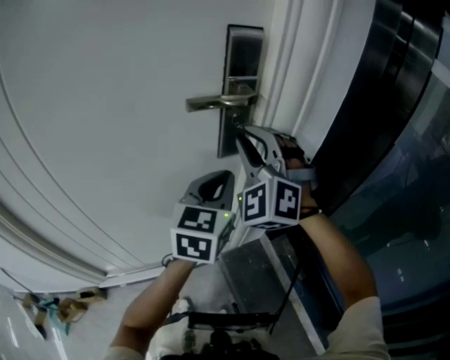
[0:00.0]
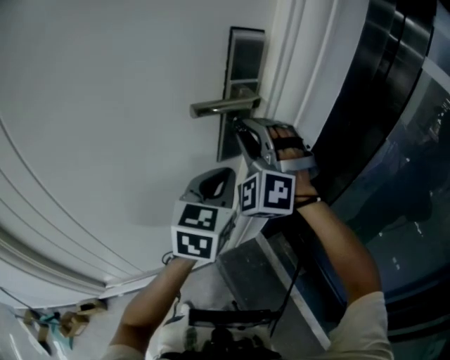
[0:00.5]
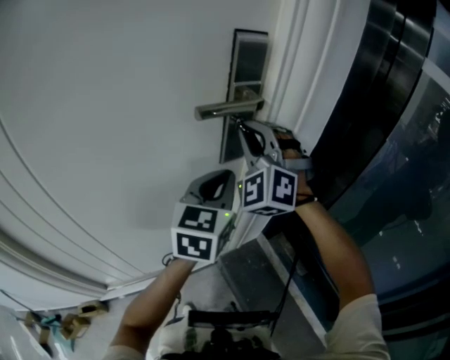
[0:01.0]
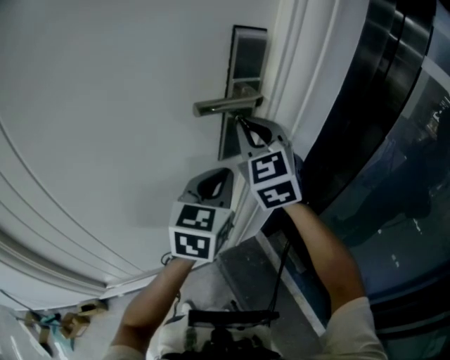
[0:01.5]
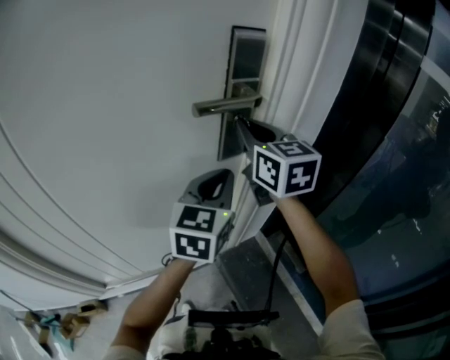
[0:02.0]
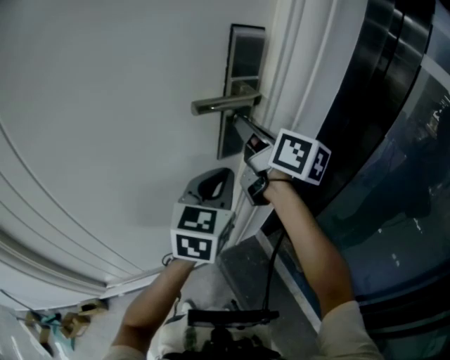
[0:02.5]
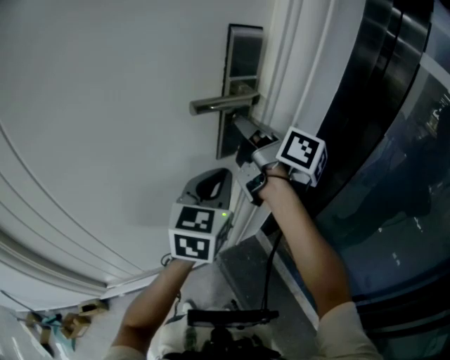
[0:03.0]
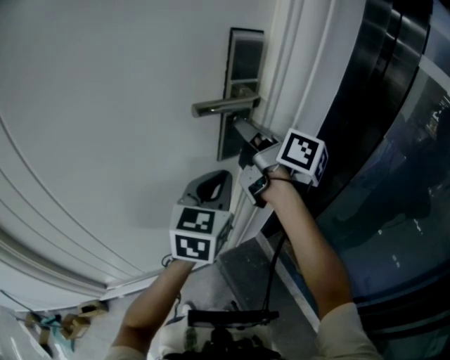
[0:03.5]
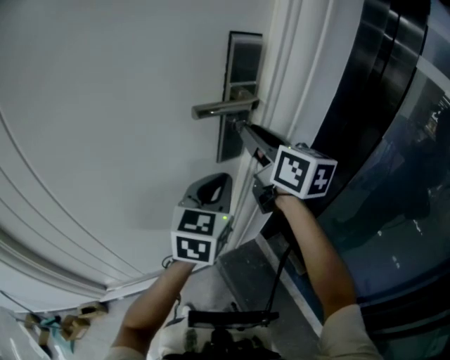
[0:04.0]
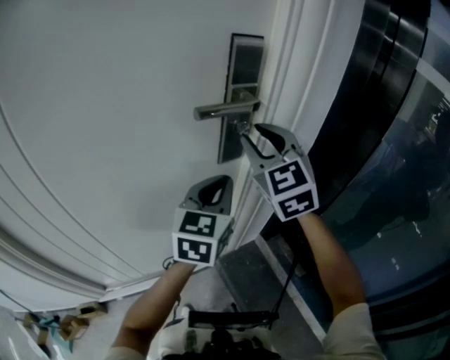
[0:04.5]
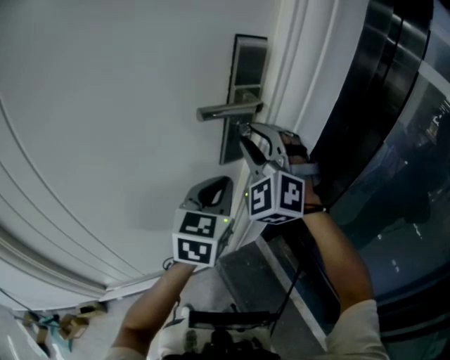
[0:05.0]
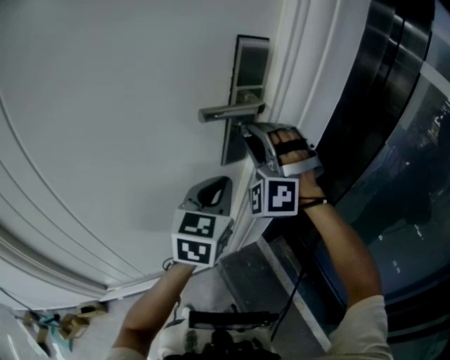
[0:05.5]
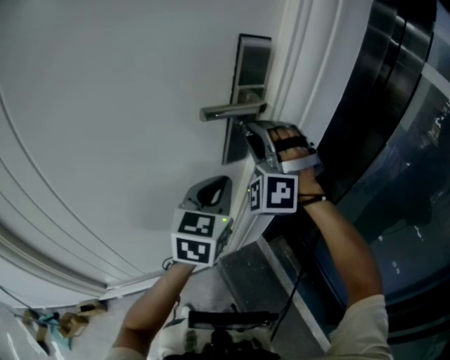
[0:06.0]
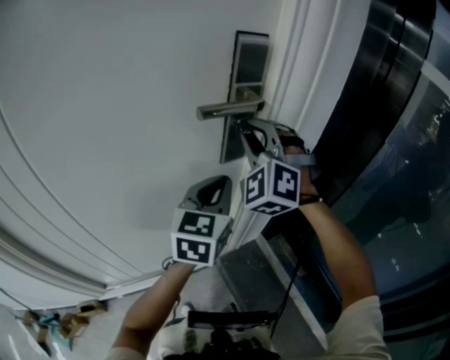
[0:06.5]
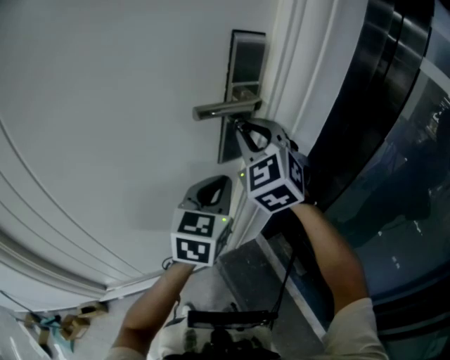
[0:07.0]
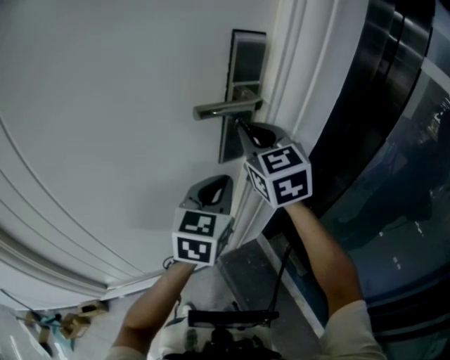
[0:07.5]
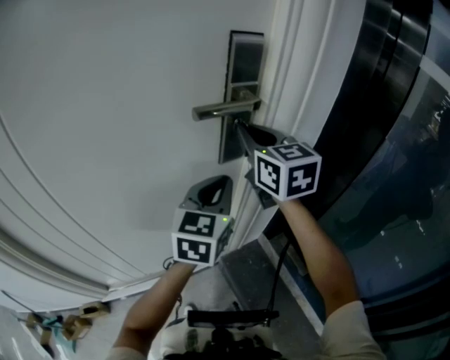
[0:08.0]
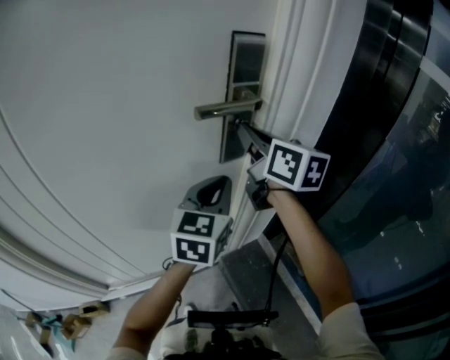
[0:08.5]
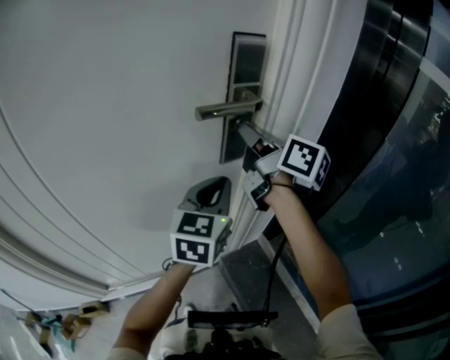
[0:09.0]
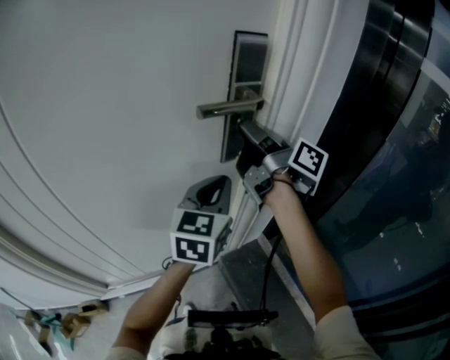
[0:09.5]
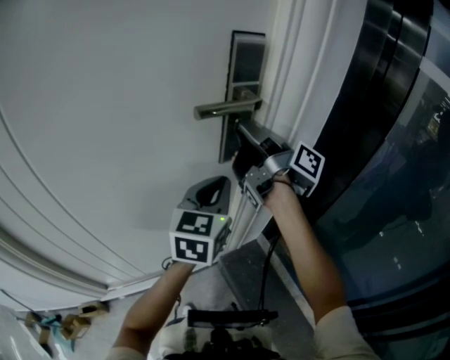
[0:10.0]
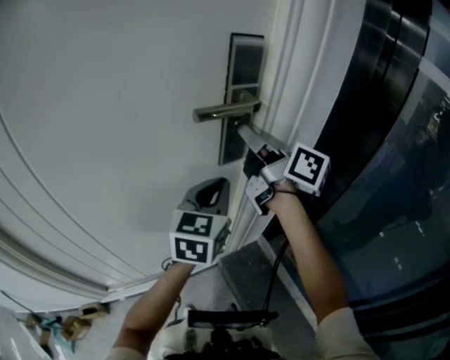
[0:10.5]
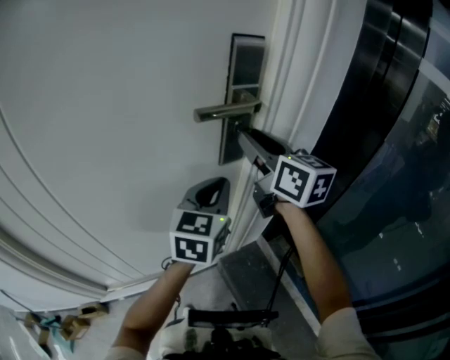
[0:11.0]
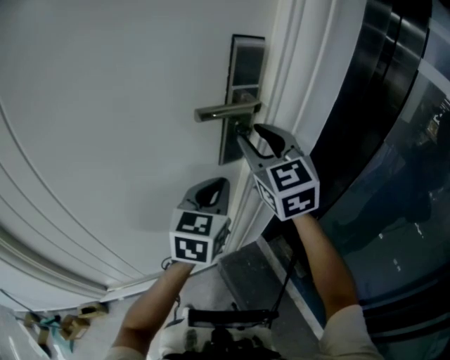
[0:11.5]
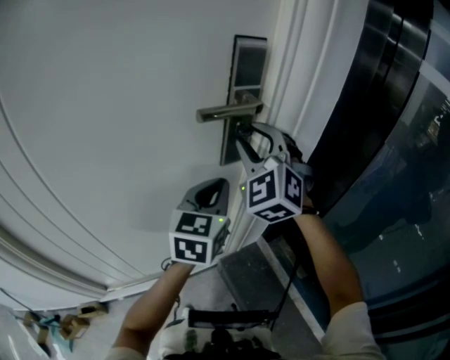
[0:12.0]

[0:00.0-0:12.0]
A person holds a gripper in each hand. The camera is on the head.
0:00.0 to 0:02.0: The right gripper twists approximately 70 degrees clockwise, seen from behind.
0:02.0 to 0:04.0: The right gripper opens its fingers.
0:04.0 to 0:06.0: The right gripper rolls counterclockwise, seen from behind, by some 110 degrees.
0:06.0 to 0:08.0: The right gripper twists approximately 90 degrees clockwise, seen from behind.
0:08.0 to 0:10.0: The right gripper rotates around the line of its fingers by roughly 80 degrees, clockwise from behind.
0:10.0 to 0:12.0: The right gripper rotates around the line of its fingers by about 130 degrees, counterclockwise from behind, and opens its fingers.

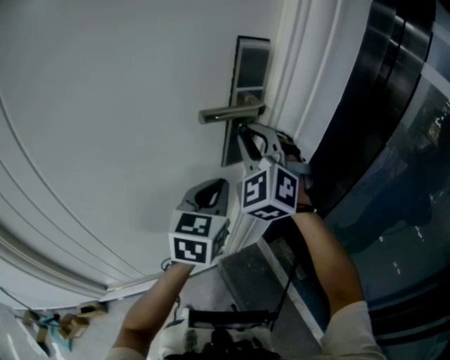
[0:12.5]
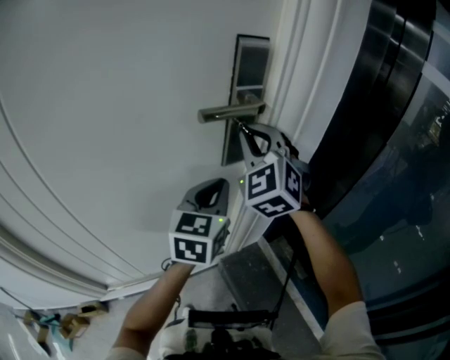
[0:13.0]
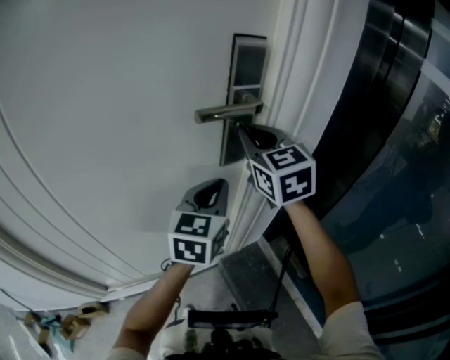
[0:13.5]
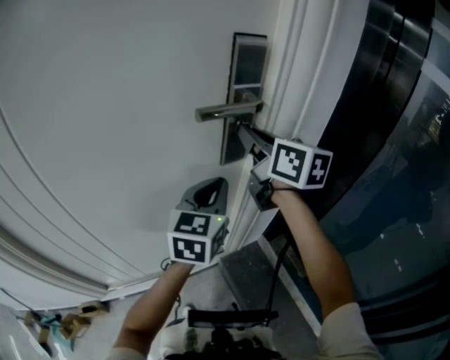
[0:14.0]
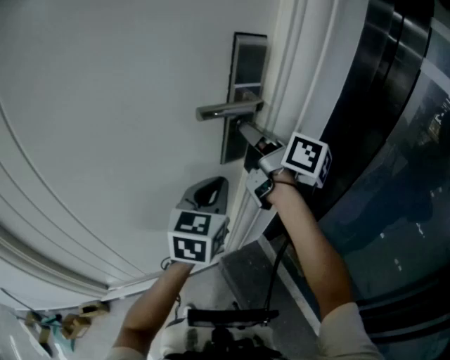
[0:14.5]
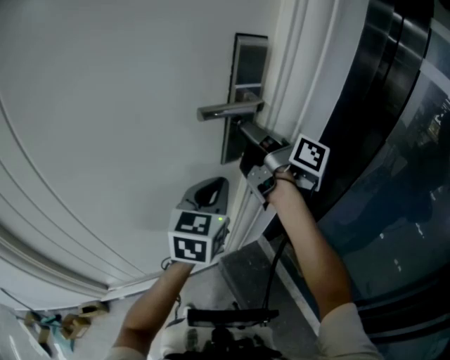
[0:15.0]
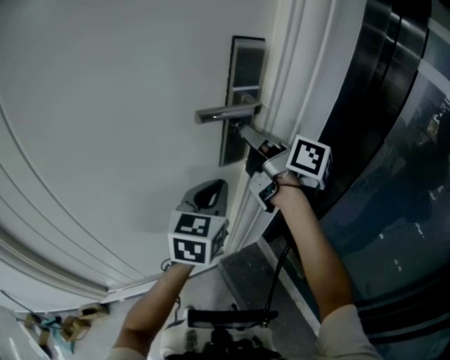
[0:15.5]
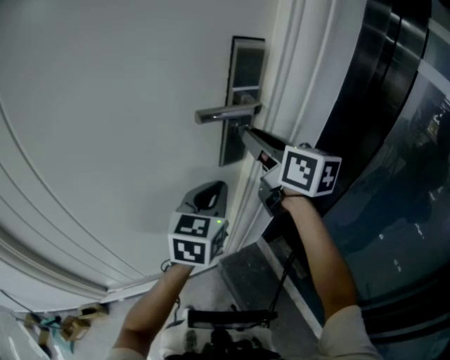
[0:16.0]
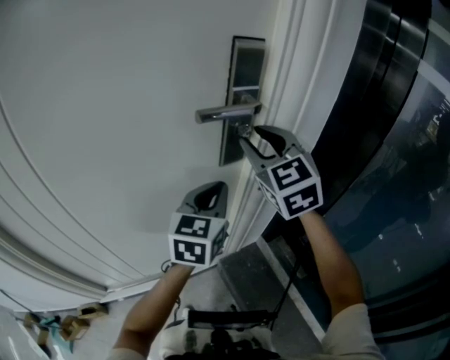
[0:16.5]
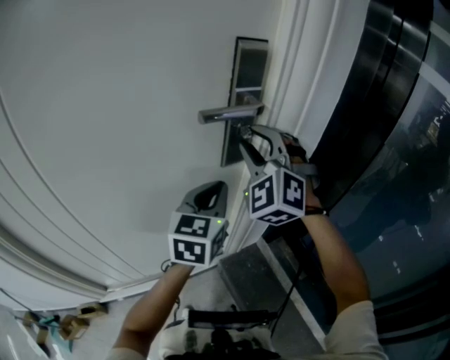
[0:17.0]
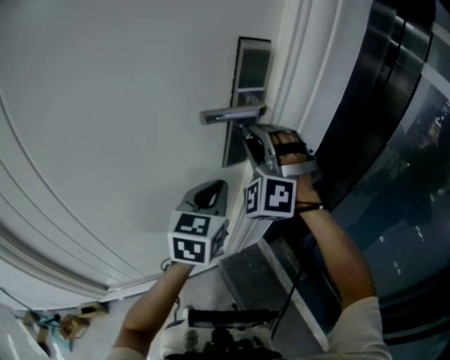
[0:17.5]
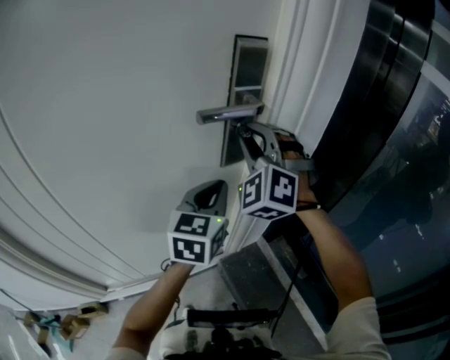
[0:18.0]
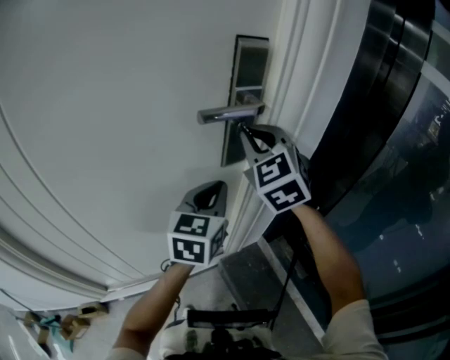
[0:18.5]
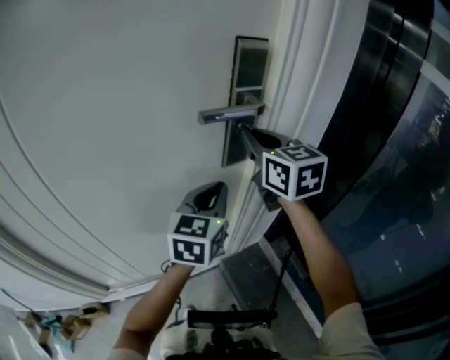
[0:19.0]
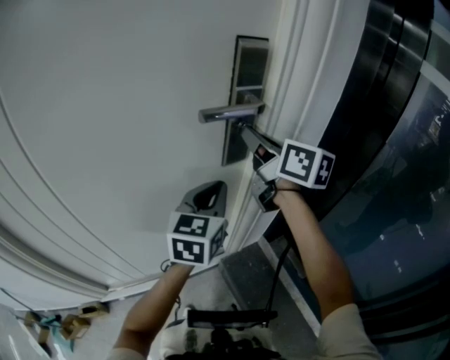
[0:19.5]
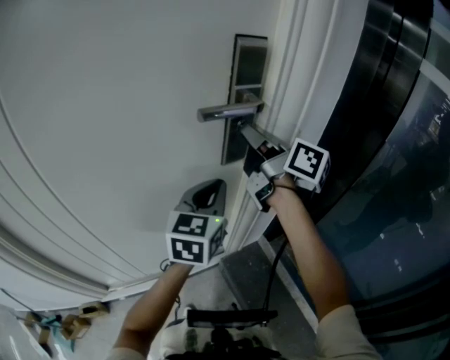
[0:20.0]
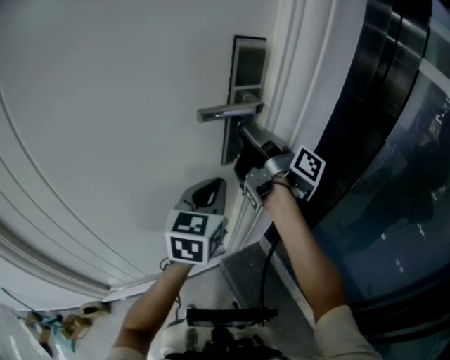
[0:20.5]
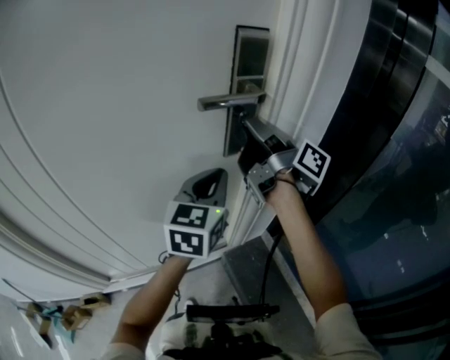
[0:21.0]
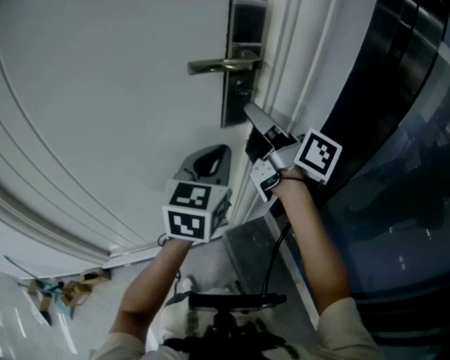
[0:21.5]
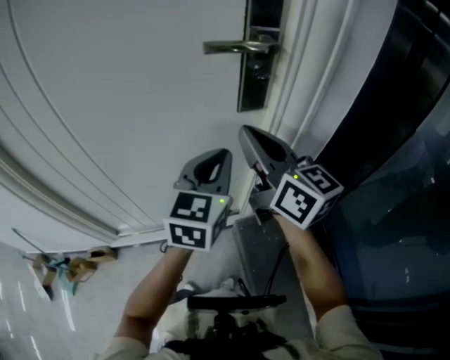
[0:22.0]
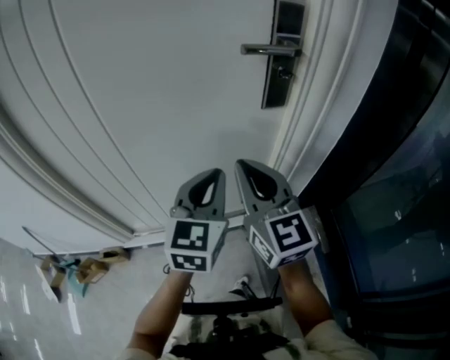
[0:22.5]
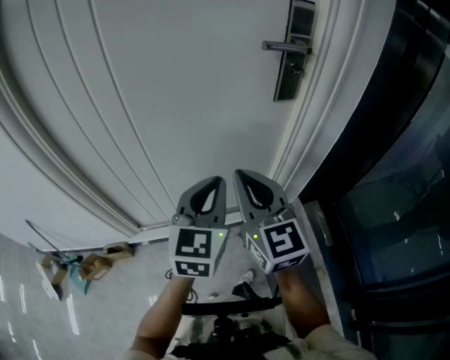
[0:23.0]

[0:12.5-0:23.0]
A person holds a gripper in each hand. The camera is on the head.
0:12.5 to 0:14.5: The right gripper rolls clockwise, seen from behind, by approximately 110 degrees.
0:14.5 to 0:16.5: The right gripper rolls counterclockwise, seen from behind, by some 80 degrees, and opens.
0:16.5 to 0:19.0: The right gripper rotates roughly 30 degrees, and closes its fingers.
0:19.0 to 0:21.0: The right gripper rolls clockwise, seen from behind, by approximately 70 degrees.
0:21.0 to 0:23.0: The right gripper goes roughly 35 cm backward, to the left and downward, and rotates around the line of its fingers by roughly 70 degrees, counterclockwise from behind. The left gripper goes some 25 cm backward and to the left.

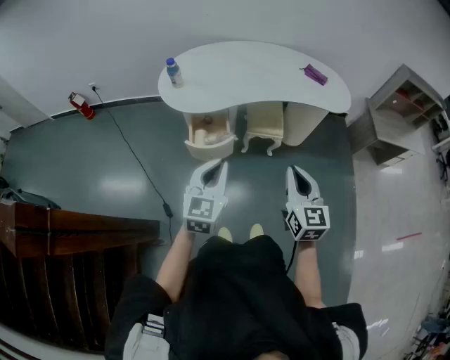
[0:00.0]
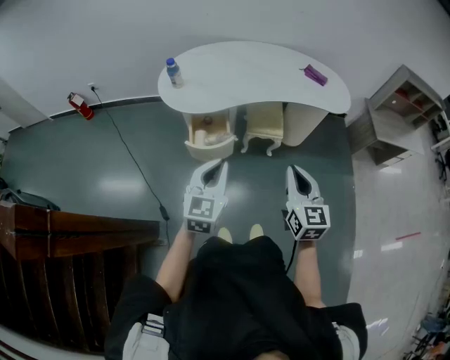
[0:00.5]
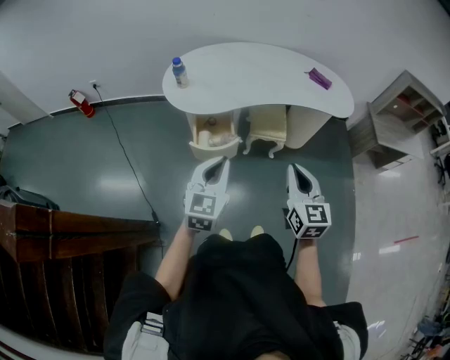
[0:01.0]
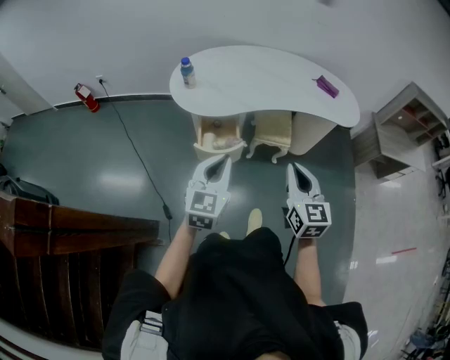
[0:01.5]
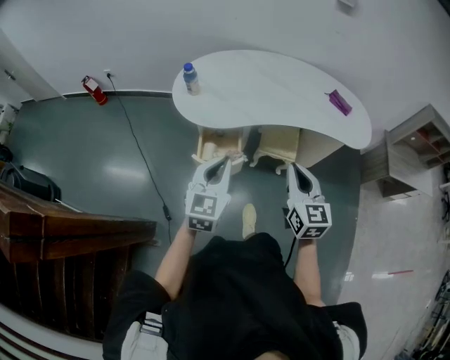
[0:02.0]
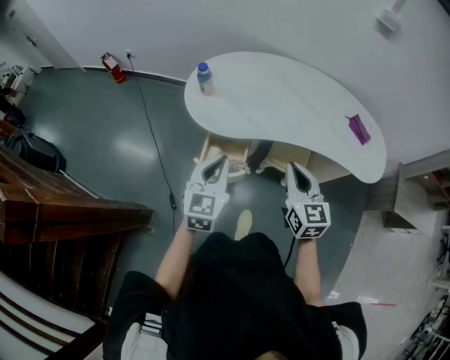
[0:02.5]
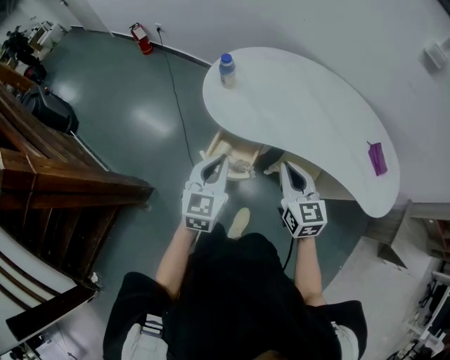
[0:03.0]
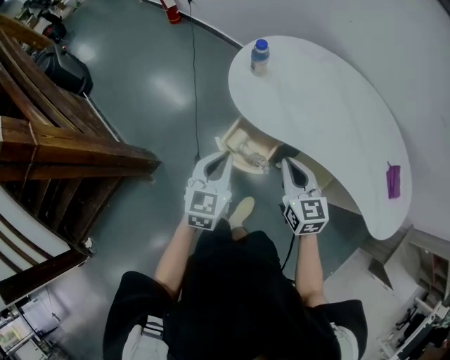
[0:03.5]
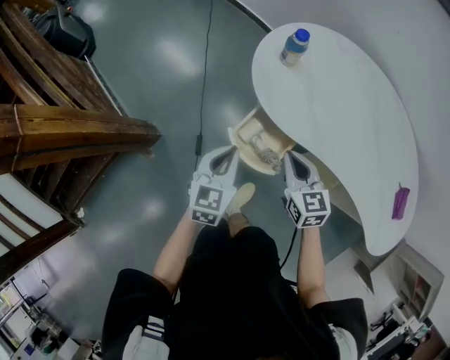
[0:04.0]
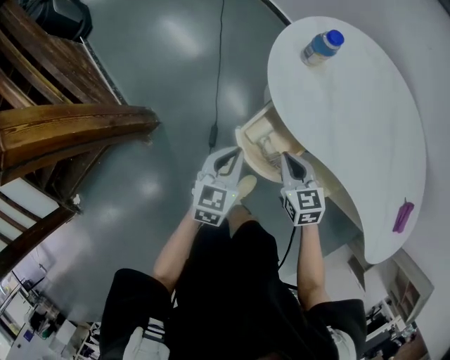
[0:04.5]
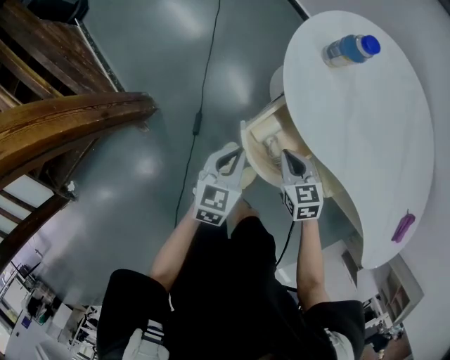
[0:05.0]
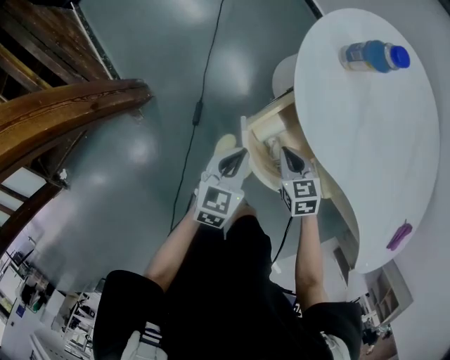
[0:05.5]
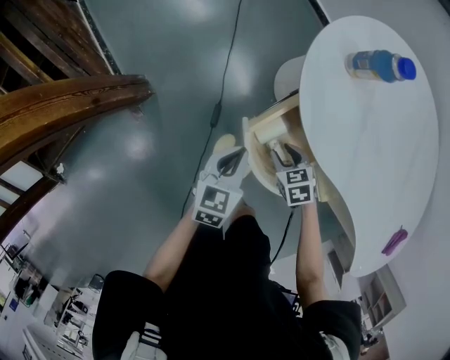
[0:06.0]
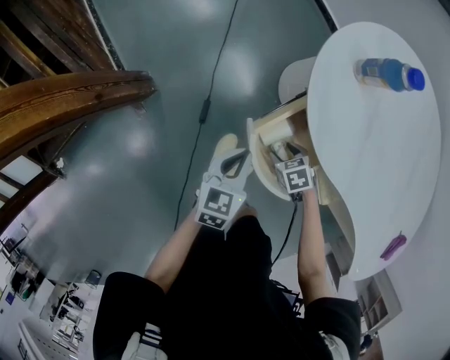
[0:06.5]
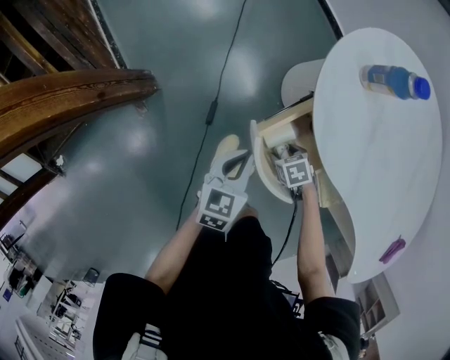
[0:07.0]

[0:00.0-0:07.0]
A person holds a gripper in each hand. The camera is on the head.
0:00.0 to 0:02.0: Both grippers move forward, some 15 cm.
0:02.0 to 0:03.5: The left gripper changes place by some 20 cm, and swivels about 40 degrees. Meanwhile the right gripper shifts by some 25 cm, and swivels roughly 40 degrees.
0:03.5 to 0:05.0: The left gripper shifts some 20 cm downward, and turns by some 20 degrees; the right gripper moves downward and forward, about 30 cm, and changes its angle by some 30 degrees.
0:05.0 to 0:07.0: The right gripper travels downward by some 20 cm, rotates about 40 degrees, and opens its fingers. Meanwhile the left gripper ends up about 5 cm from where it was.
